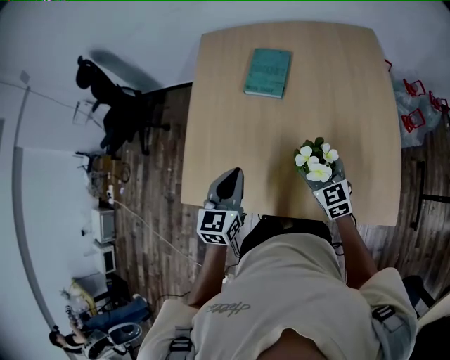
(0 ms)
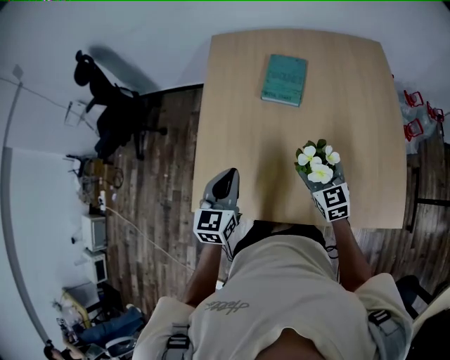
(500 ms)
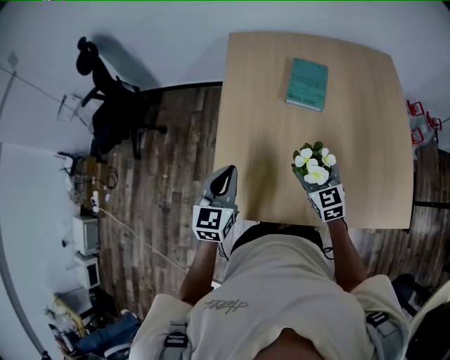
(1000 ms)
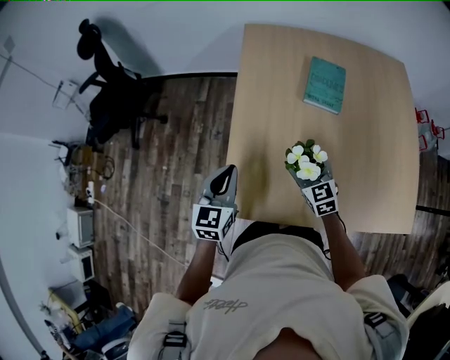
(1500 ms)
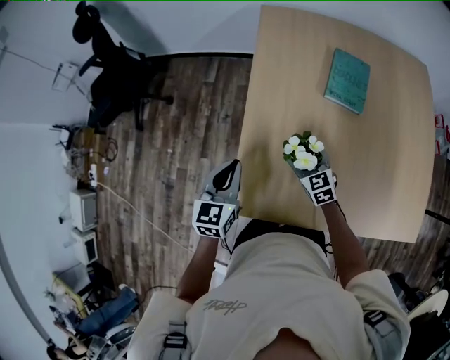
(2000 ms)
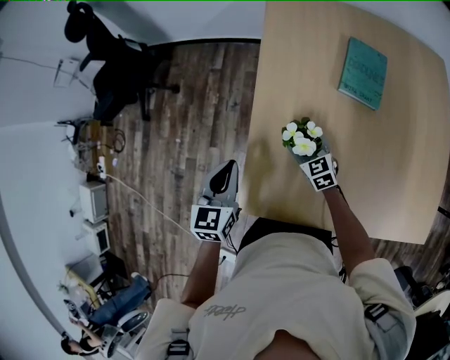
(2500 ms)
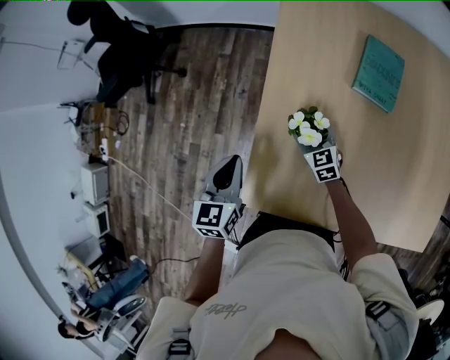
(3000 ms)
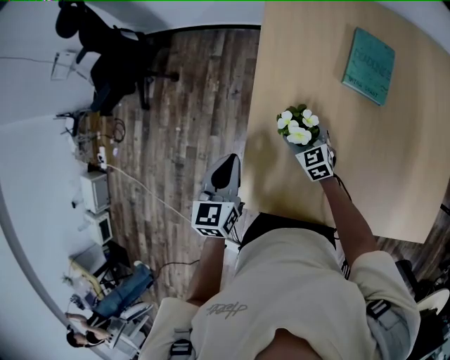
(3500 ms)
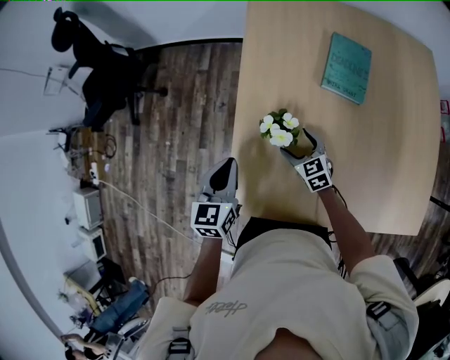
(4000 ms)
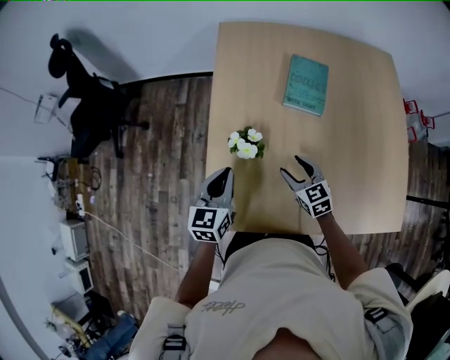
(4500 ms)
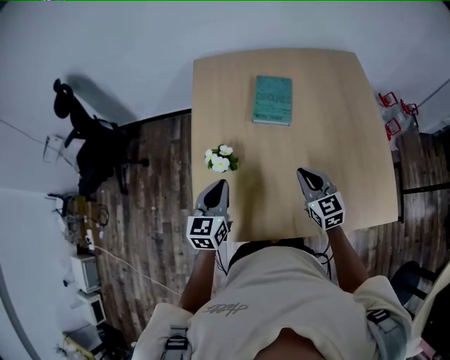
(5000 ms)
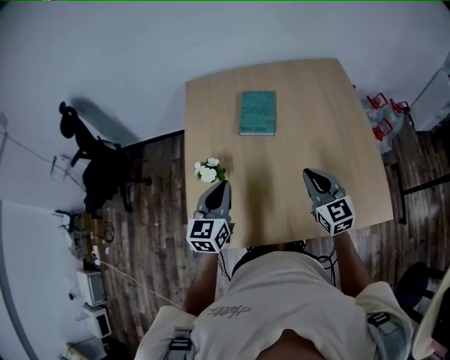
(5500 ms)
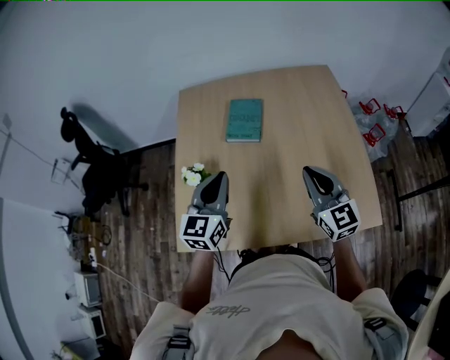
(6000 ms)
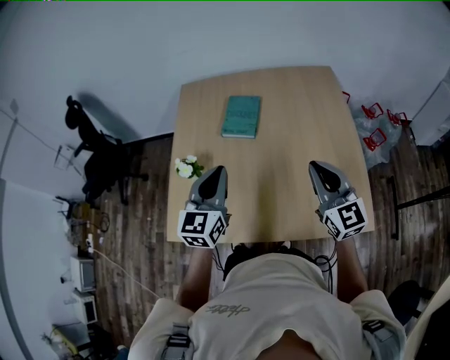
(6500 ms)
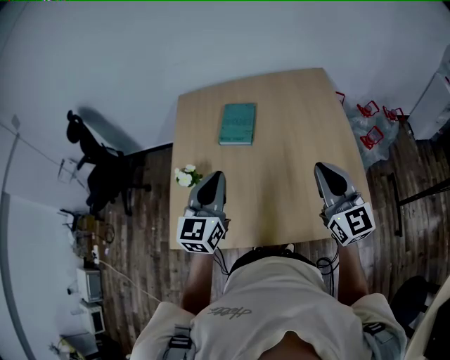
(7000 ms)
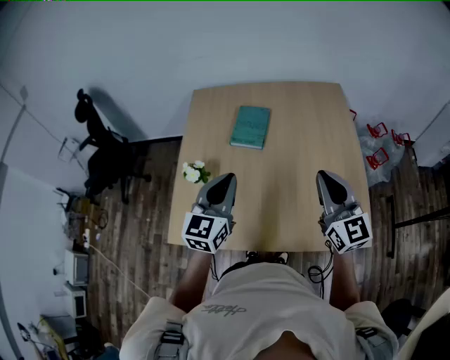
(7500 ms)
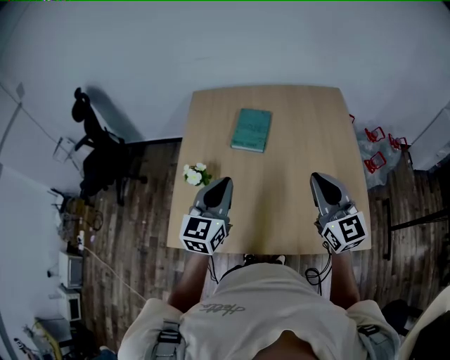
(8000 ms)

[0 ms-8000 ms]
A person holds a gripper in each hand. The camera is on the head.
0 ms to 2000 ms: The right gripper is displaced to the left and forward by roughly 35 cm, while the left gripper travels to the left by some 30 cm.
4000 ms to 6000 ms: The right gripper heads to the right, upward and backward, covering approximately 50 cm, tilts its fingers approximately 40 degrees upward, and closes up, while the left gripper is displaced to the right and upward by approximately 35 cm, and swivels approximately 30 degrees.
6000 ms to 8000 ms: The right gripper heads upward, covering roughly 5 cm, and goes to the right and returns, approximately 10 cm each way.

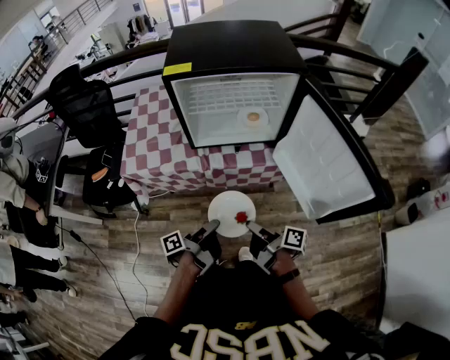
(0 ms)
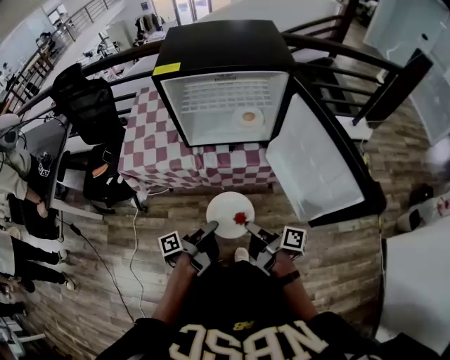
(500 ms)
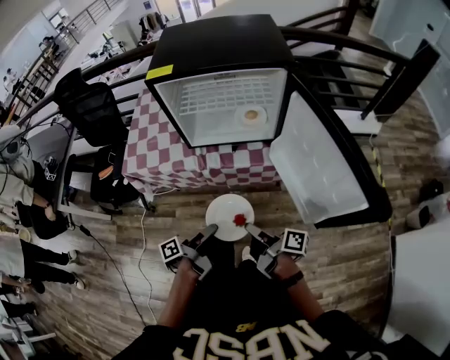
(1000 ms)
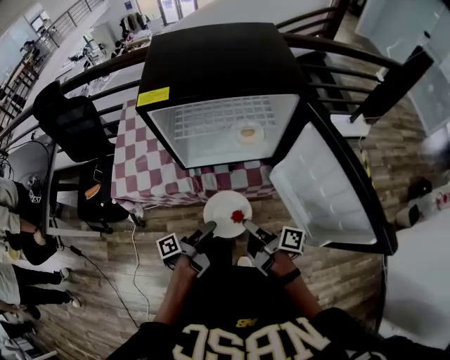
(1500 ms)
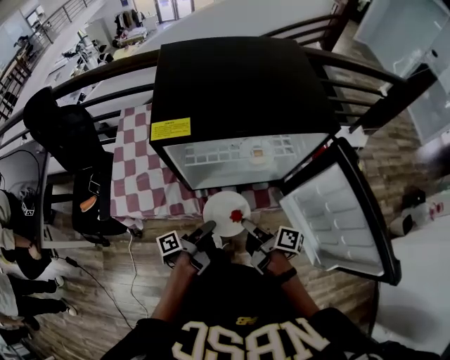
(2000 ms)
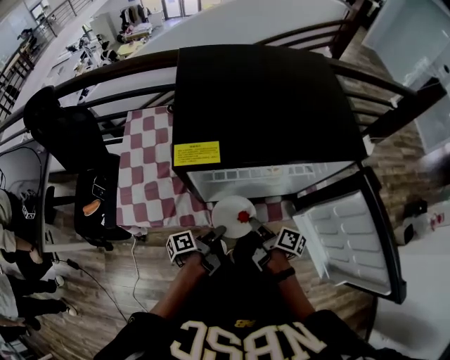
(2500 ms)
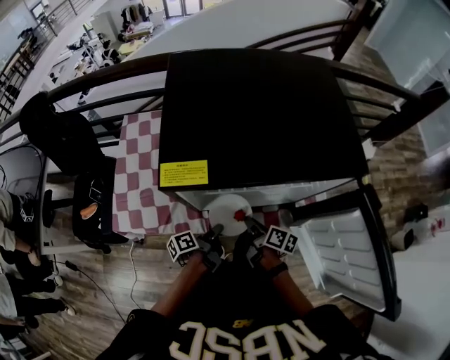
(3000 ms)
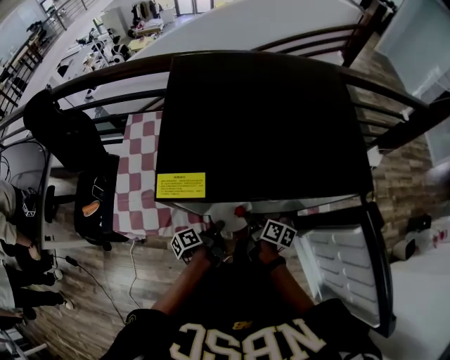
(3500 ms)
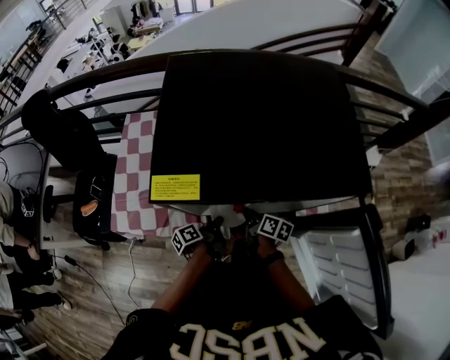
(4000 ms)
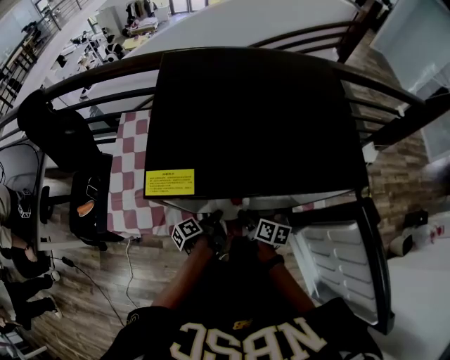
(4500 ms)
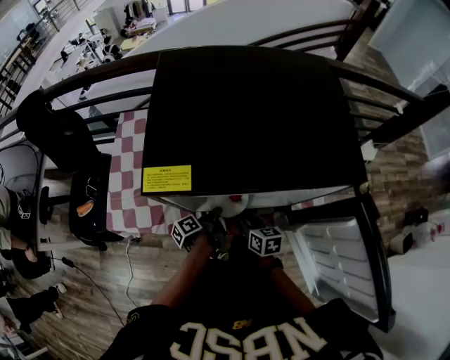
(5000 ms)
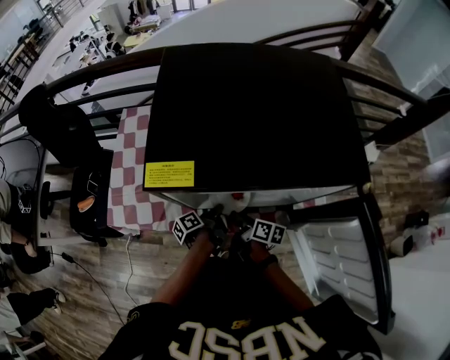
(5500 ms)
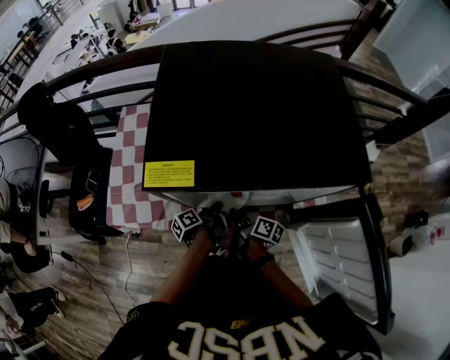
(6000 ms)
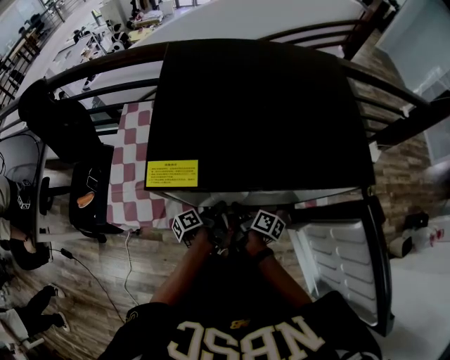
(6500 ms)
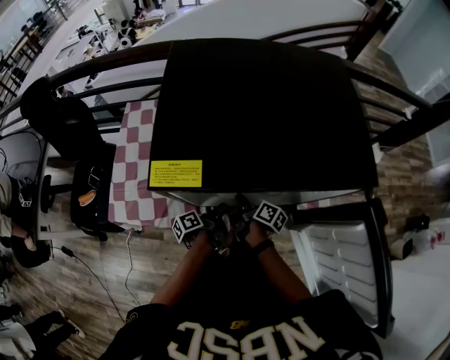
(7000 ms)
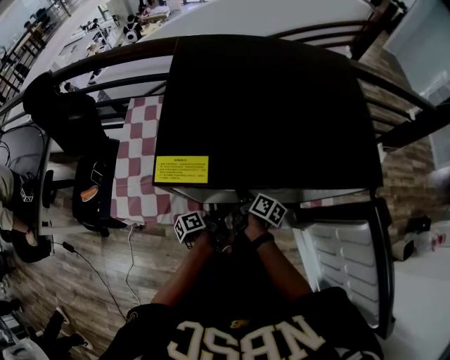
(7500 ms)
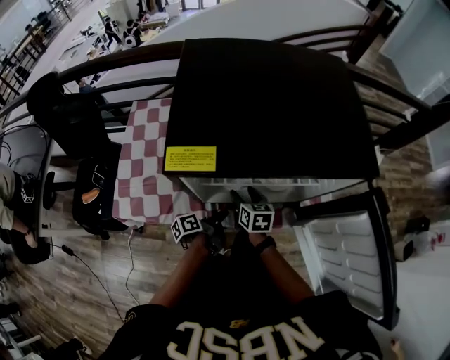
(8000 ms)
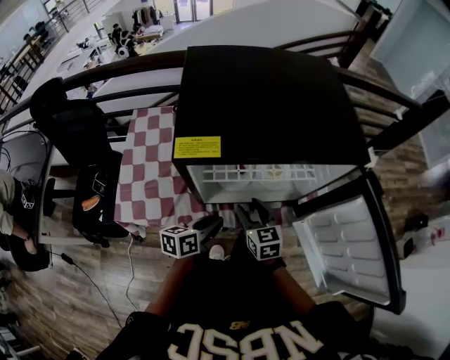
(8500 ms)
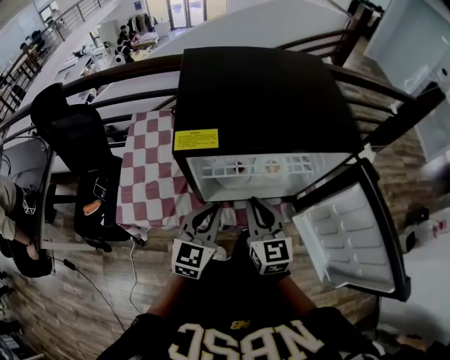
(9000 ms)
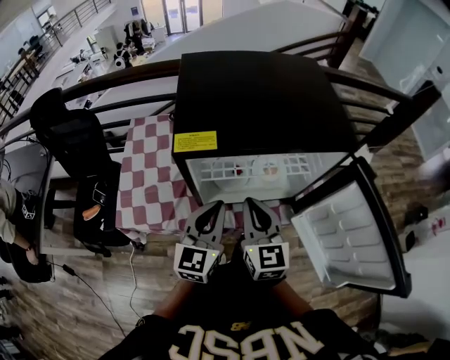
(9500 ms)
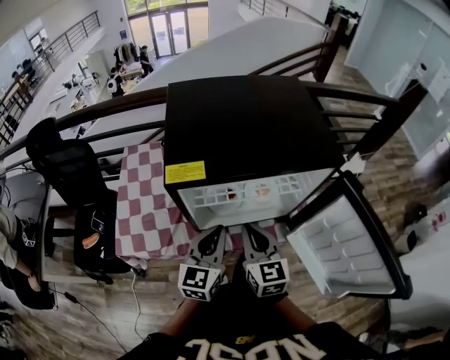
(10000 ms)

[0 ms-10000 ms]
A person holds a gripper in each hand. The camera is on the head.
0 ms to 2000 ms: The right gripper ends up approximately 20 cm from where it was.
2000 ms to 4000 ms: The right gripper moves about 20 cm, and rotates roughly 20 degrees.
4000 ms to 6000 ms: The right gripper shifts by roughly 5 cm, and opens and closes again.
6000 ms to 8000 ms: The right gripper moves some 5 cm, rolls counterclockwise, seen from behind, by roughly 50 degrees, and opens.
8000 ms to 10000 ms: The right gripper is displaced upward by roughly 20 cm, rotates some 30 degrees, and closes its fingers.

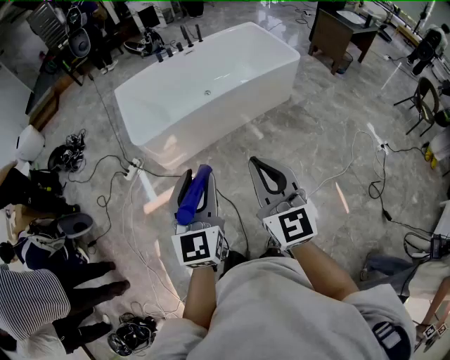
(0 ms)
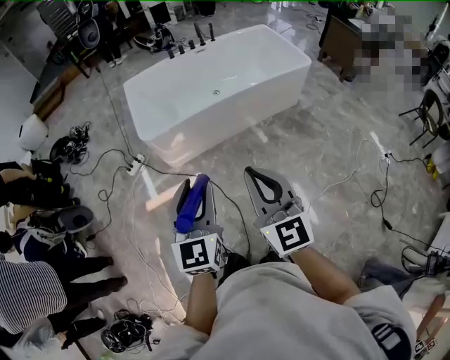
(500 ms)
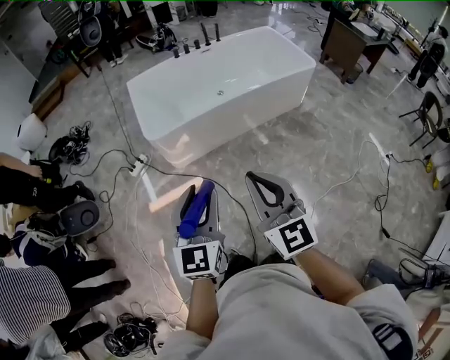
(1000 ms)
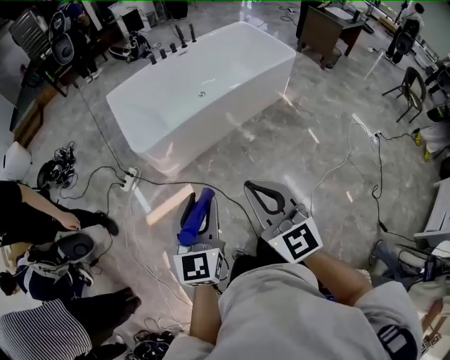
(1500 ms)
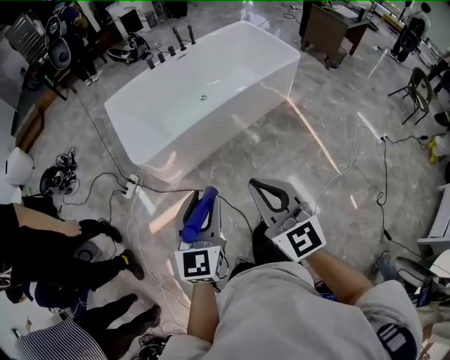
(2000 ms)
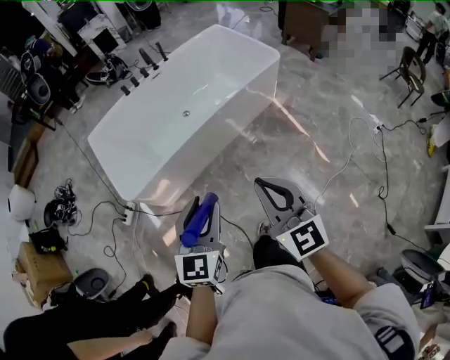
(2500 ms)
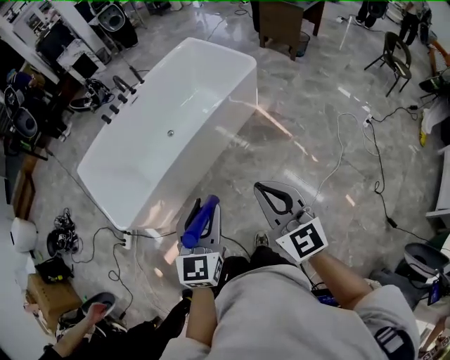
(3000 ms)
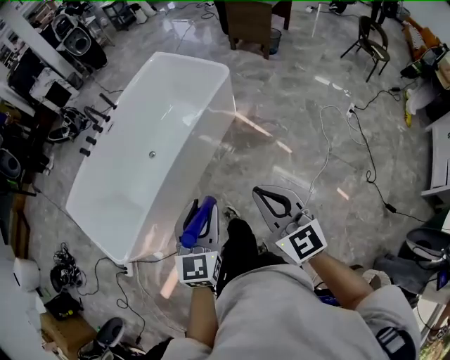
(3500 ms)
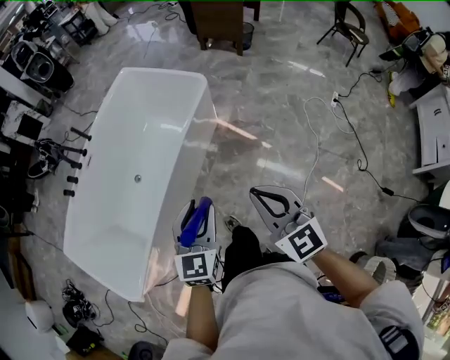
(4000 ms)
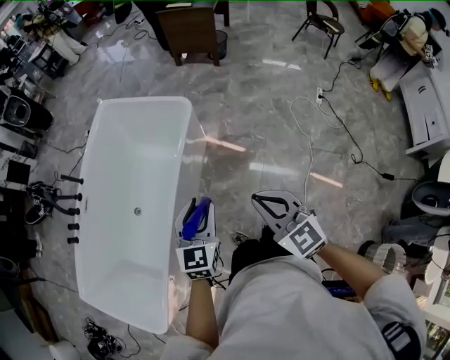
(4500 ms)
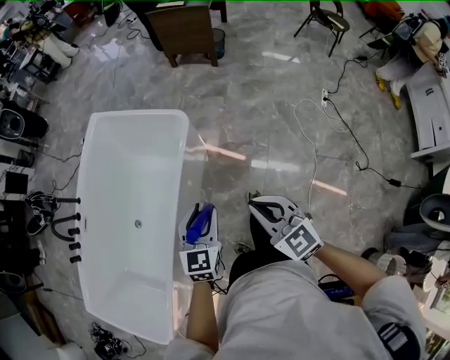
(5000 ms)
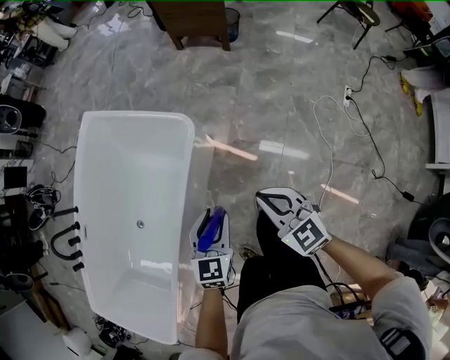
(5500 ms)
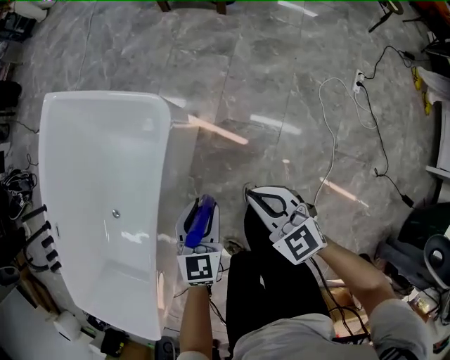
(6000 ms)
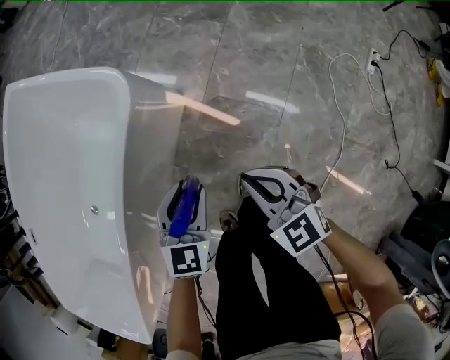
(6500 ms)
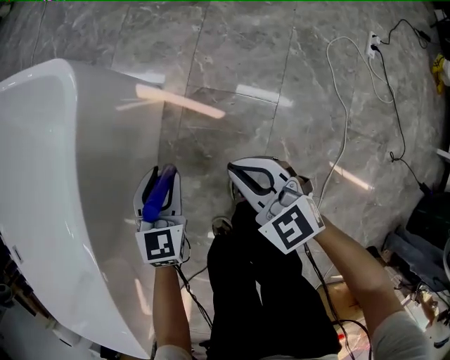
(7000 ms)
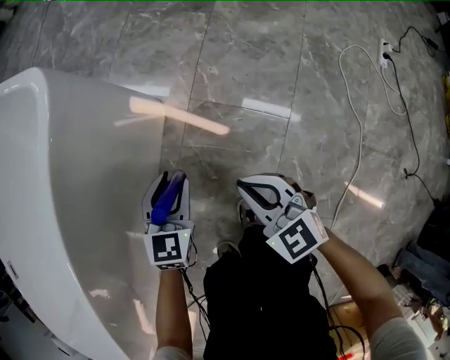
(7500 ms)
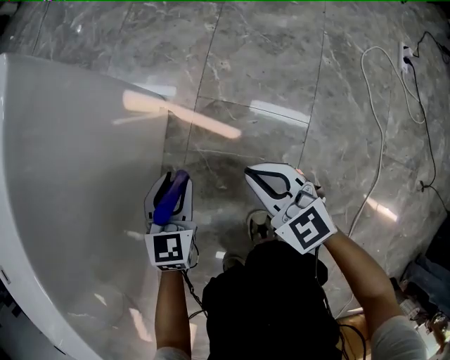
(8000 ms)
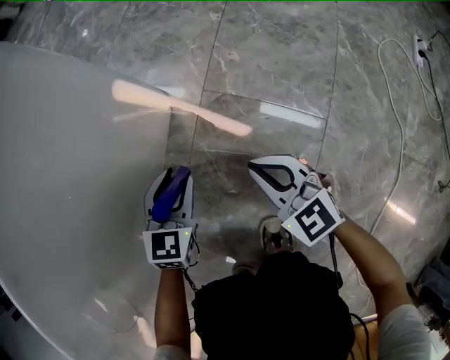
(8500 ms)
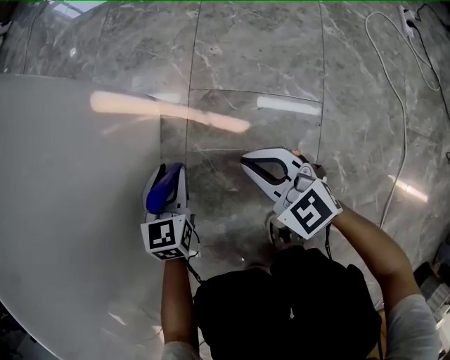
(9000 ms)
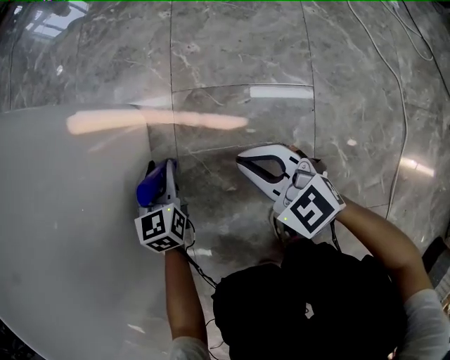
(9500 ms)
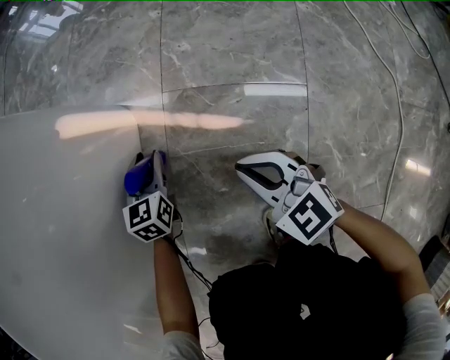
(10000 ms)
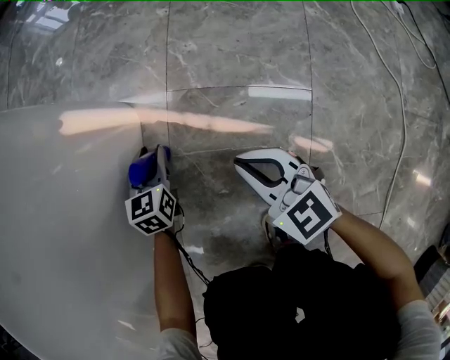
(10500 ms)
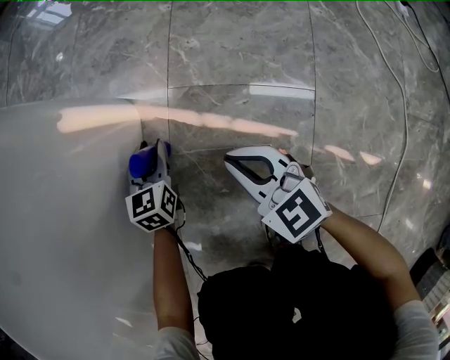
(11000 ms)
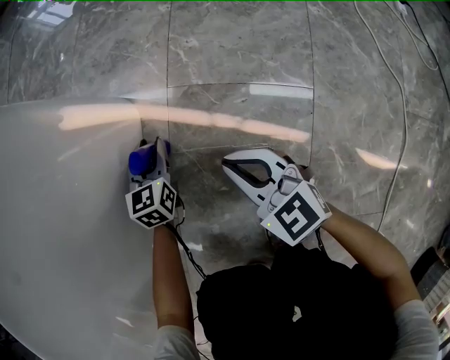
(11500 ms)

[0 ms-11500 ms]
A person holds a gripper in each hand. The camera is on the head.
0 ms to 2000 ms: The right gripper travels to the left and forward by roughly 15 cm; the left gripper is displaced forward, to the left and downward by approximately 15 cm.
2000 ms to 4000 ms: The two grippers travel together, approximately 50 cm. The right gripper turns by about 30 degrees; the left gripper rotates roughly 30 degrees.
4000 ms to 6000 ms: The pair of grippers is taken forward, about 40 cm. The two grippers go some 35 cm downward. The left gripper swivels approximately 20 degrees.
6000 ms to 7500 ms: The grippers both shift downward by about 40 cm.
7500 ms to 9500 ms: Both grippers move downward, about 20 cm.
9500 ms to 11500 ms: The left gripper changes place by roughly 5 cm.
